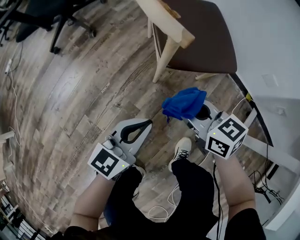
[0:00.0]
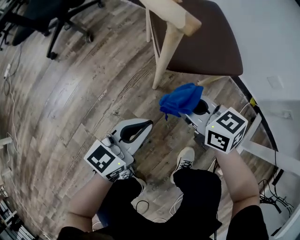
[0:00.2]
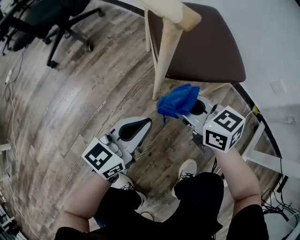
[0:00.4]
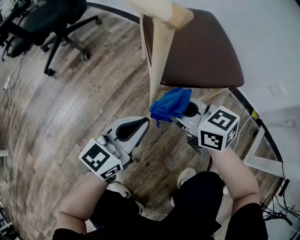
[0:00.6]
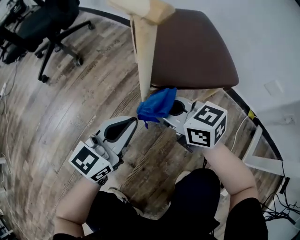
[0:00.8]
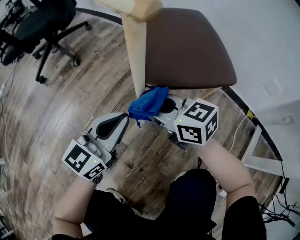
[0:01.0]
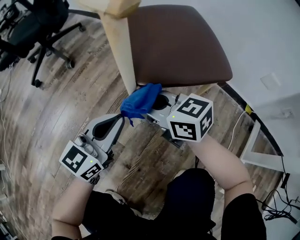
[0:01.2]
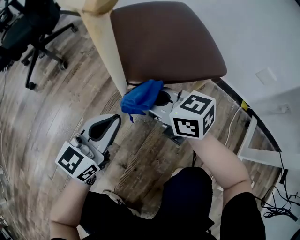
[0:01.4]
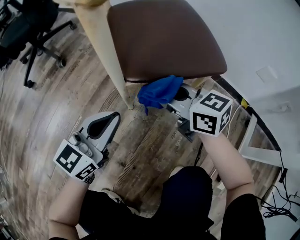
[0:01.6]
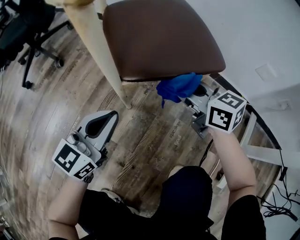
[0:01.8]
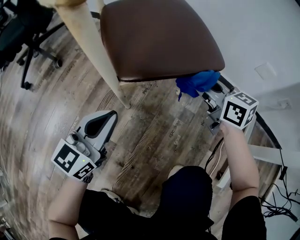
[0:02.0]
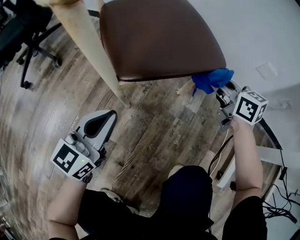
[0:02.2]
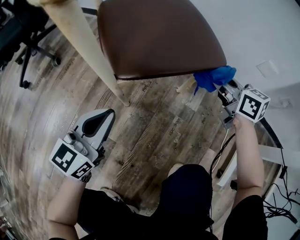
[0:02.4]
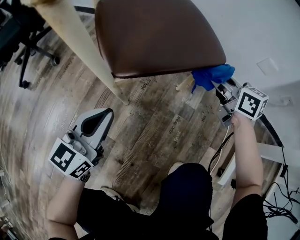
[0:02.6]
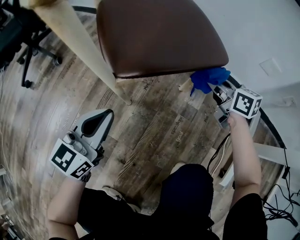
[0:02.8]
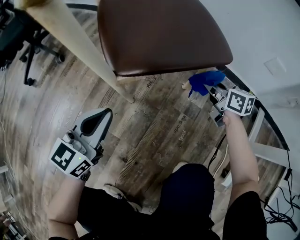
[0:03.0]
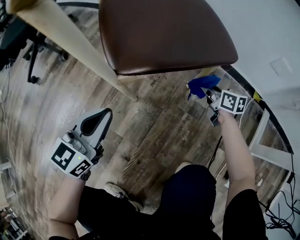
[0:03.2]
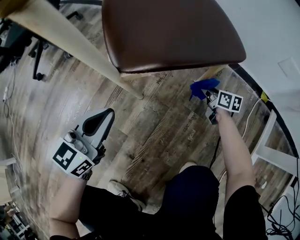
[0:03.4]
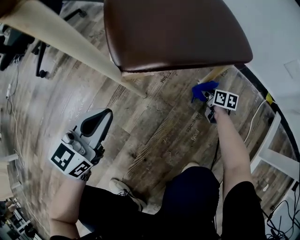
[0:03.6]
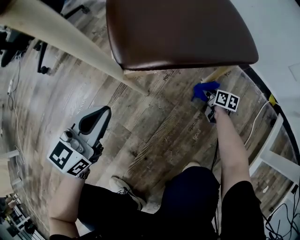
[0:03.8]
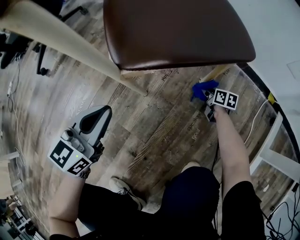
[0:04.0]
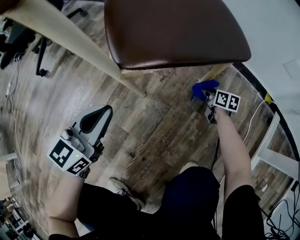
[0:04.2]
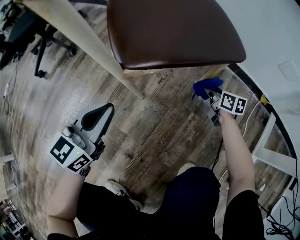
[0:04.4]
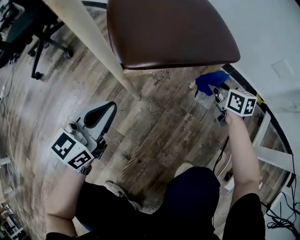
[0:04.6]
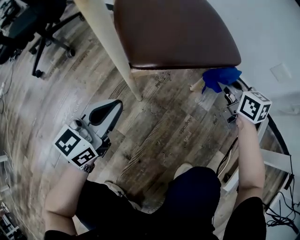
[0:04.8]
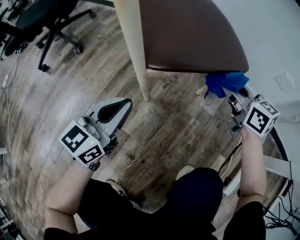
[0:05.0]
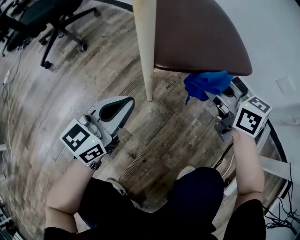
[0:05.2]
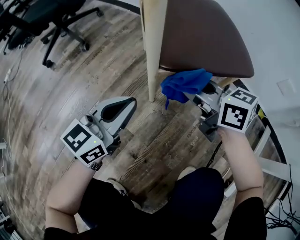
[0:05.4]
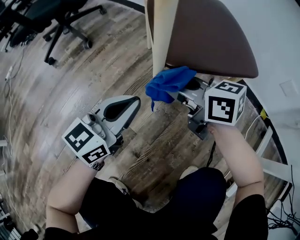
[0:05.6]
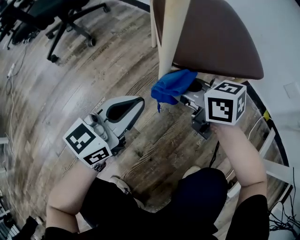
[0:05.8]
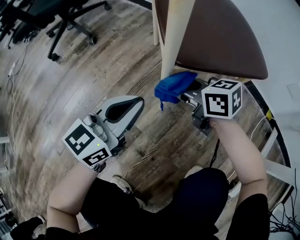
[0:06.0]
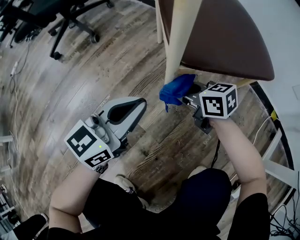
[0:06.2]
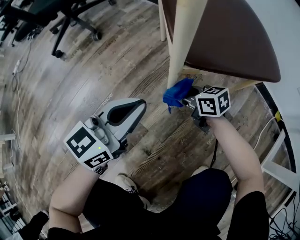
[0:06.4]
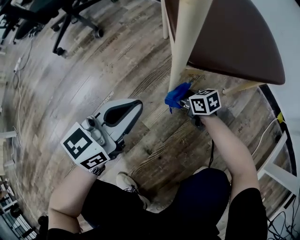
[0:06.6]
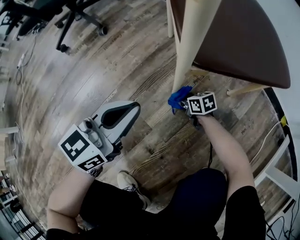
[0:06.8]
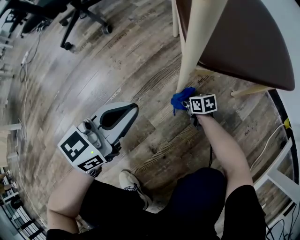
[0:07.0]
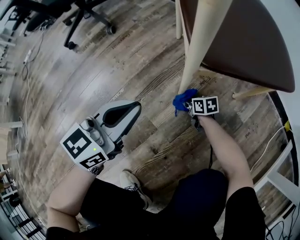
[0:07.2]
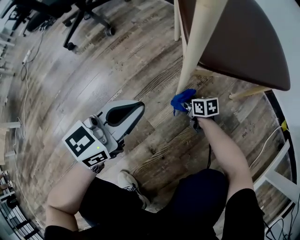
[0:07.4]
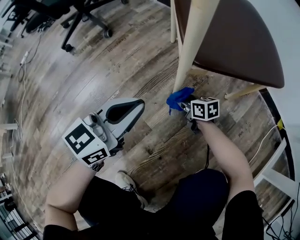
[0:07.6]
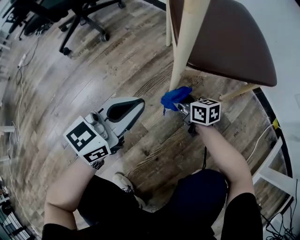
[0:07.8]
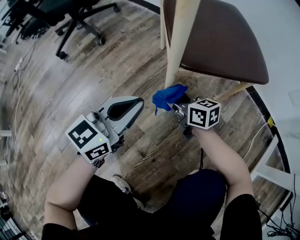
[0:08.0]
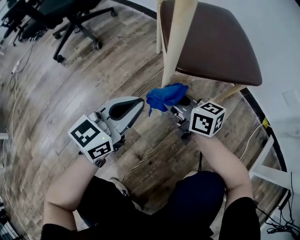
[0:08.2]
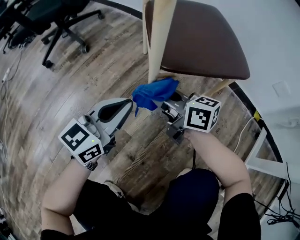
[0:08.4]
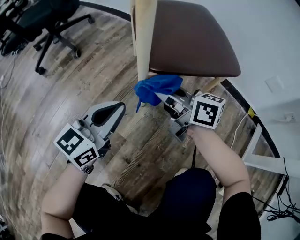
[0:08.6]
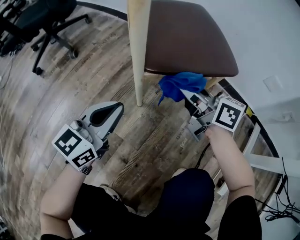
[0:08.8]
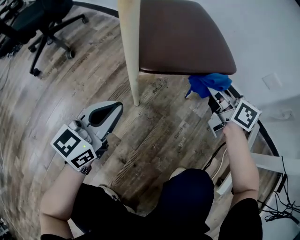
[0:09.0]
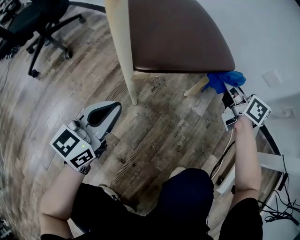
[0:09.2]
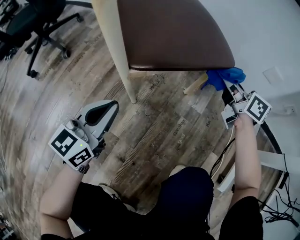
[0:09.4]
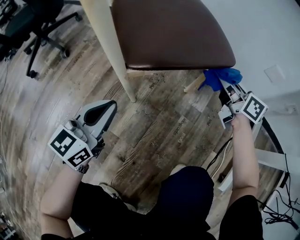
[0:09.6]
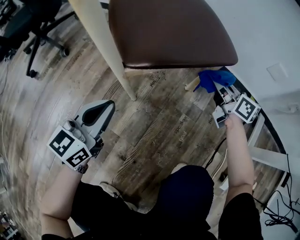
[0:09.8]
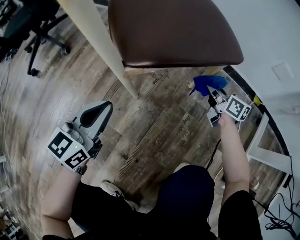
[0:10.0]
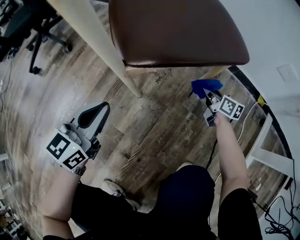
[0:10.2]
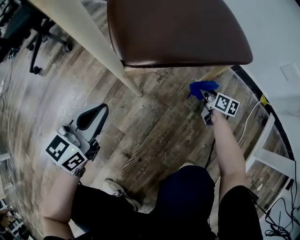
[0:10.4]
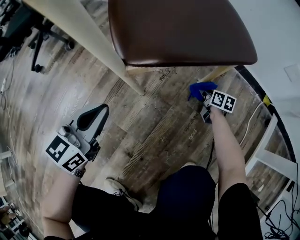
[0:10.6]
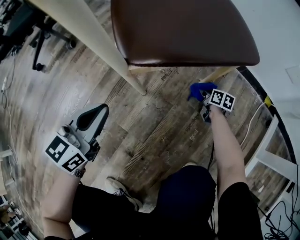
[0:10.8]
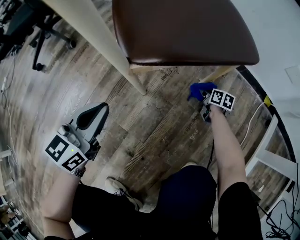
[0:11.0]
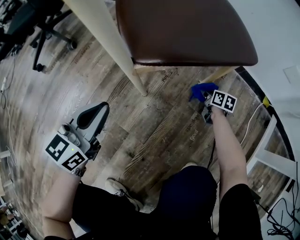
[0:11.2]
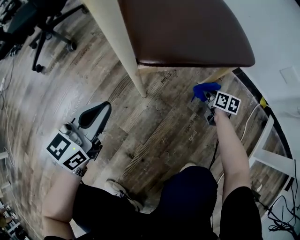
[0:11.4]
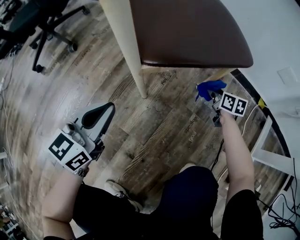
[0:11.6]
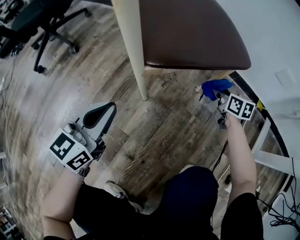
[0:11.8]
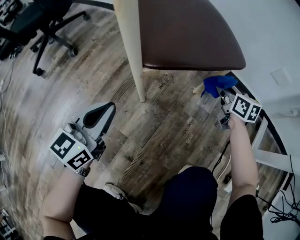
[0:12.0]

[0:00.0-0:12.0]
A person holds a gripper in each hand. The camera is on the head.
0:00.0 to 0:01.6: The right gripper heads downward, forward and to the right, covering about 15 cm; the left gripper shifts approximately 15 cm downward and forward.
0:01.6 to 0:03.0: The right gripper shifts roughly 25 cm to the right and downward, and rotates roughly 30 degrees.
0:03.0 to 0:04.4: The right gripper moves downward, approximately 10 cm.
0:04.4 to 0:06.0: The right gripper shifts some 35 cm to the left and upward, and turns by roughly 40 degrees.
0:06.0 to 0:07.6: The right gripper goes about 20 cm downward.
0:07.6 to 0:09.0: The left gripper is displaced to the right by some 5 cm. Meanwhile the right gripper shifts roughly 35 cm upward and to the right, and changes its angle by roughly 30 degrees.
0:09.0 to 0:10.4: The right gripper shifts some 30 cm downward, and rotates about 20 degrees, while the left gripper moves roughly 5 cm.
0:10.4 to 0:12.0: The right gripper is displaced upward by about 20 cm.

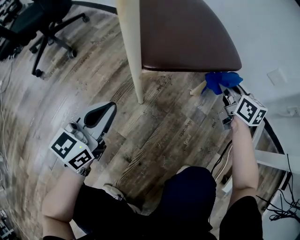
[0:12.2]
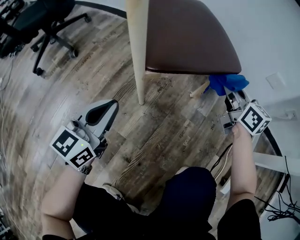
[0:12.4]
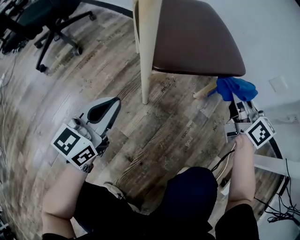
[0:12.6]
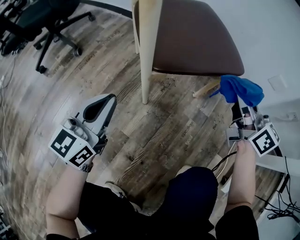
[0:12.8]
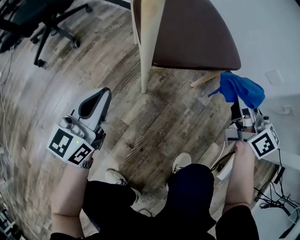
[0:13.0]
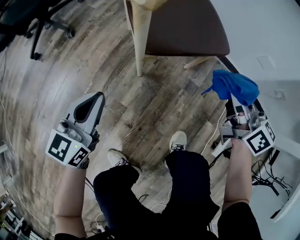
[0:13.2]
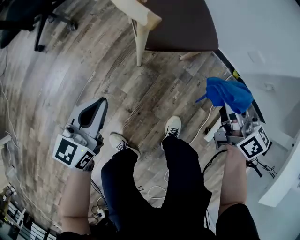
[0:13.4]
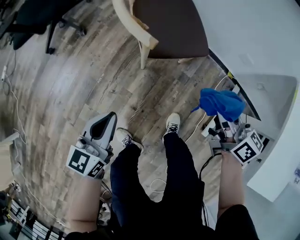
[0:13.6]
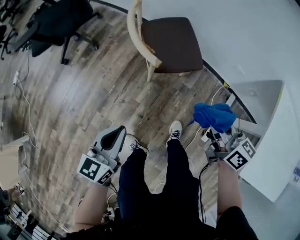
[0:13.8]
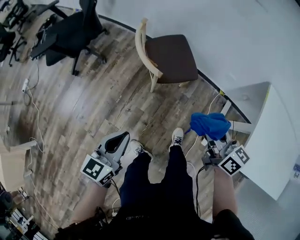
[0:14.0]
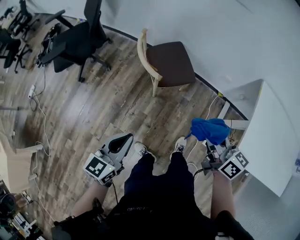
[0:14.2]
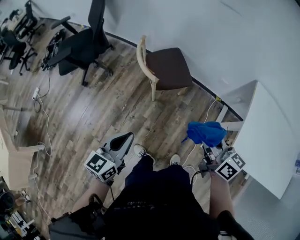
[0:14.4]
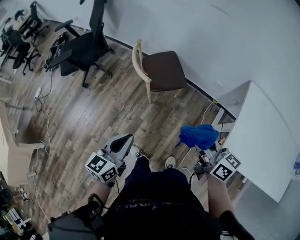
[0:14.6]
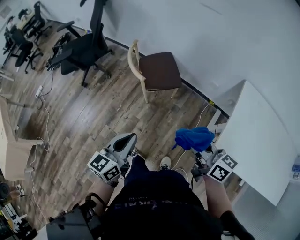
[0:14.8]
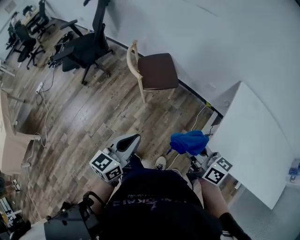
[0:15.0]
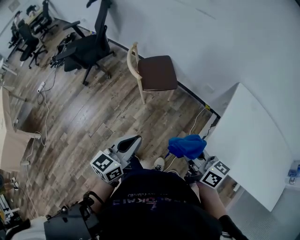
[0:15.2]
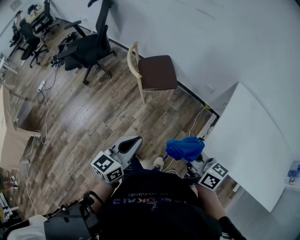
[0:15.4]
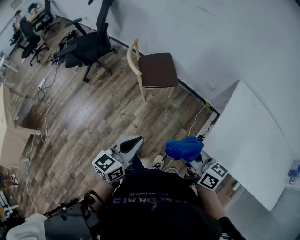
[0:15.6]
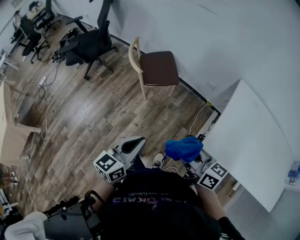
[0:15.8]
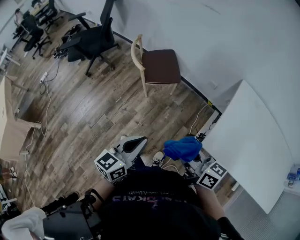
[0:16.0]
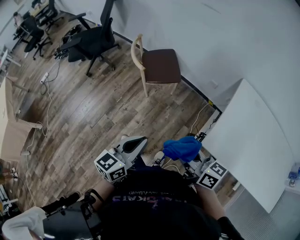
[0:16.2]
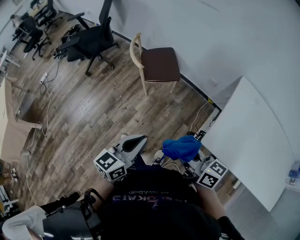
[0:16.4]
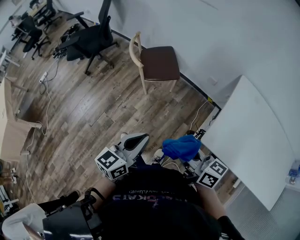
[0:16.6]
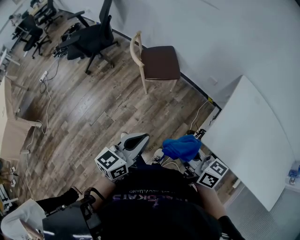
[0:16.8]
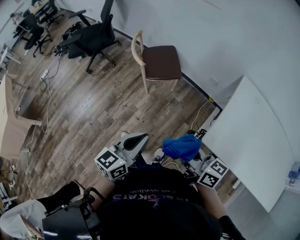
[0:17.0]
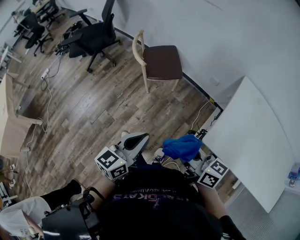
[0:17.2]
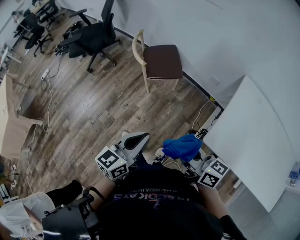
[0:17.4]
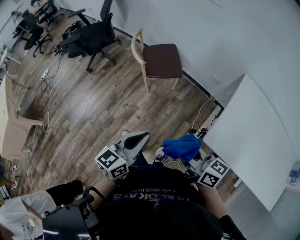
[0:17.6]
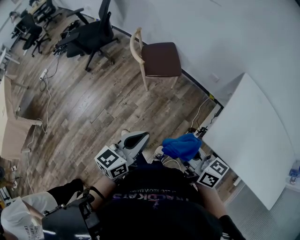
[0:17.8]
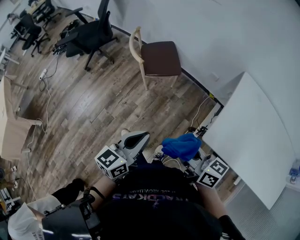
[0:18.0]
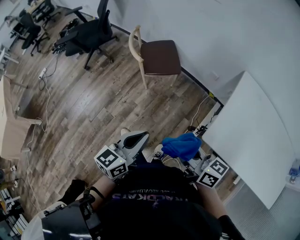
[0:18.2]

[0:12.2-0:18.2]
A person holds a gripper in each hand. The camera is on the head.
0:12.2 to 0:13.8: The right gripper is displaced upward and backward by about 50 cm. The left gripper goes some 40 cm upward.
0:13.8 to 0:15.2: The left gripper heads upward, to the right and backward, covering approximately 40 cm. The right gripper moves backward and upward, approximately 35 cm.
0:15.2 to 0:16.6: The left gripper shifts by some 5 cm; the right gripper moves backward, some 5 cm.
0:16.6 to 0:18.2: Neither gripper changes place.

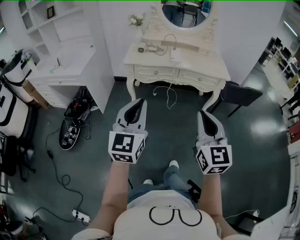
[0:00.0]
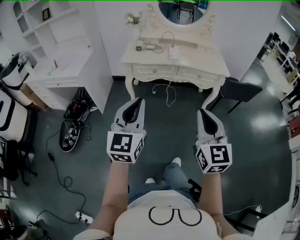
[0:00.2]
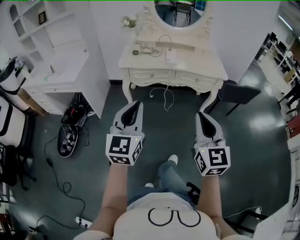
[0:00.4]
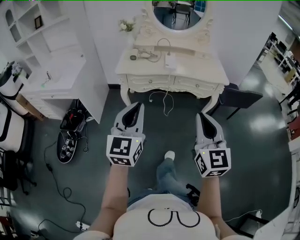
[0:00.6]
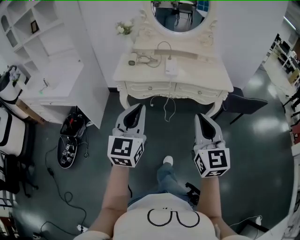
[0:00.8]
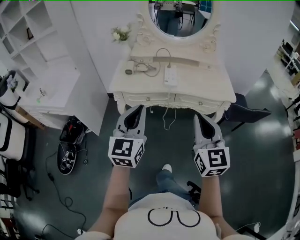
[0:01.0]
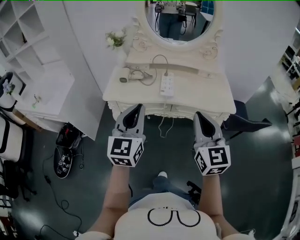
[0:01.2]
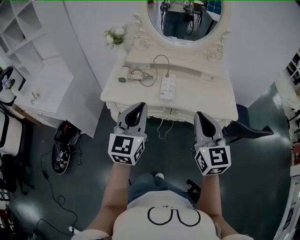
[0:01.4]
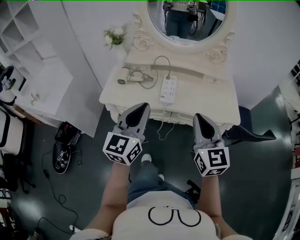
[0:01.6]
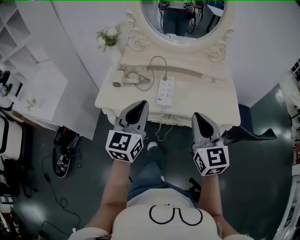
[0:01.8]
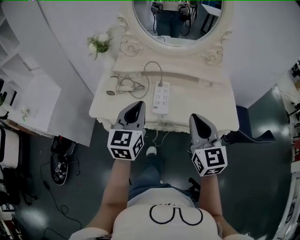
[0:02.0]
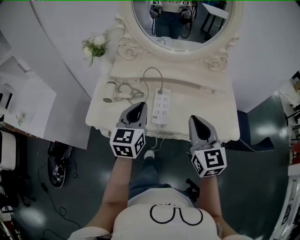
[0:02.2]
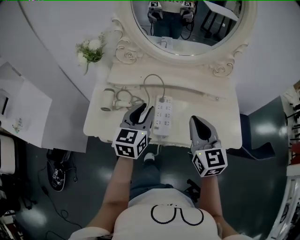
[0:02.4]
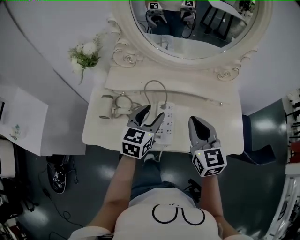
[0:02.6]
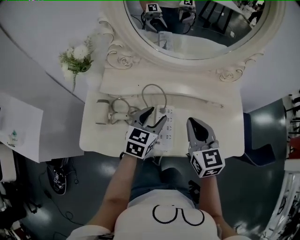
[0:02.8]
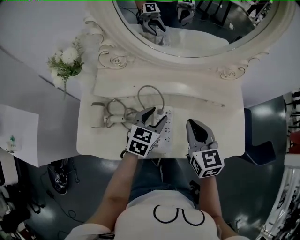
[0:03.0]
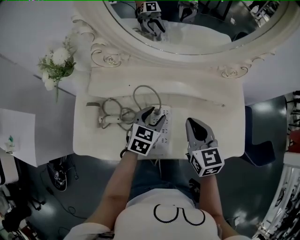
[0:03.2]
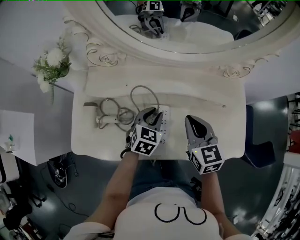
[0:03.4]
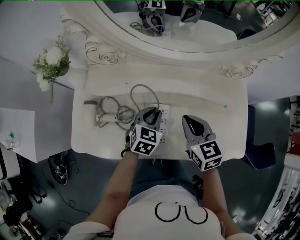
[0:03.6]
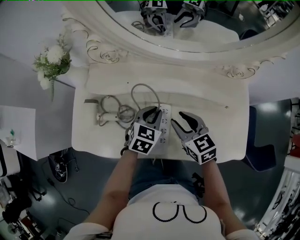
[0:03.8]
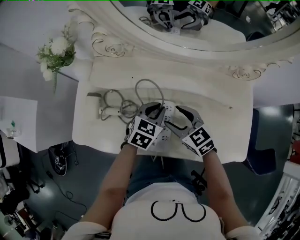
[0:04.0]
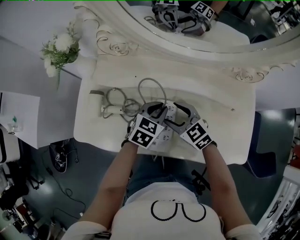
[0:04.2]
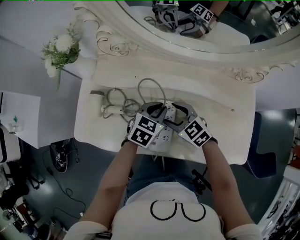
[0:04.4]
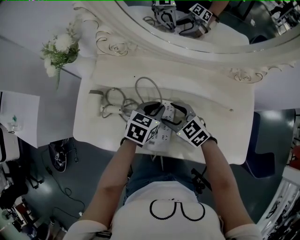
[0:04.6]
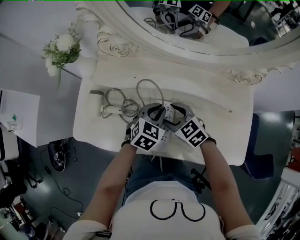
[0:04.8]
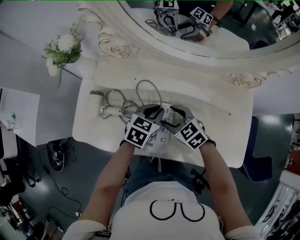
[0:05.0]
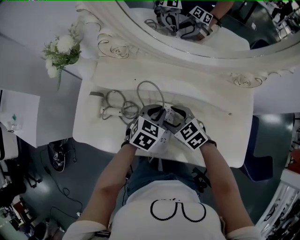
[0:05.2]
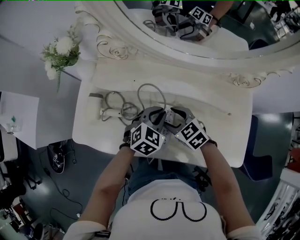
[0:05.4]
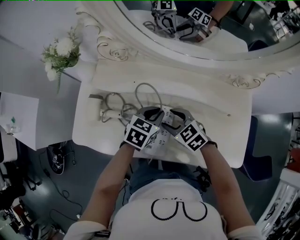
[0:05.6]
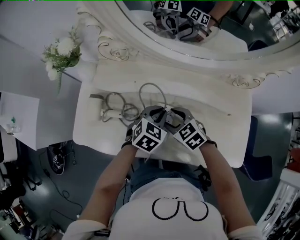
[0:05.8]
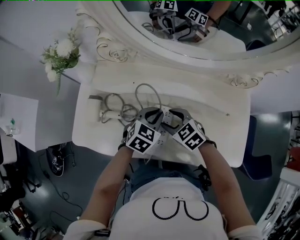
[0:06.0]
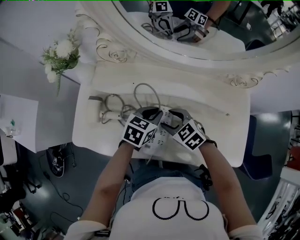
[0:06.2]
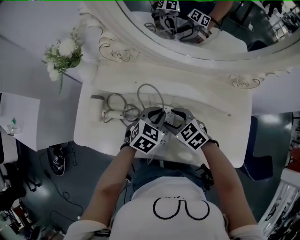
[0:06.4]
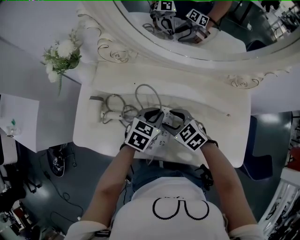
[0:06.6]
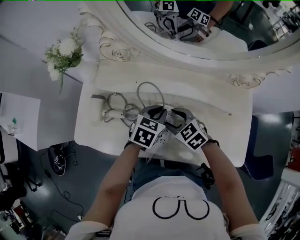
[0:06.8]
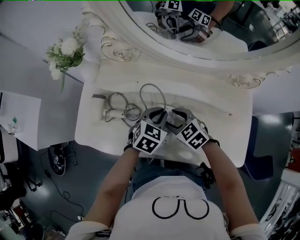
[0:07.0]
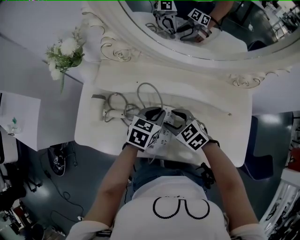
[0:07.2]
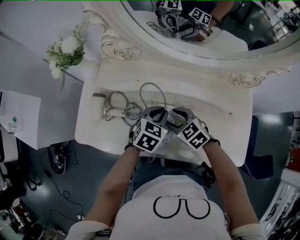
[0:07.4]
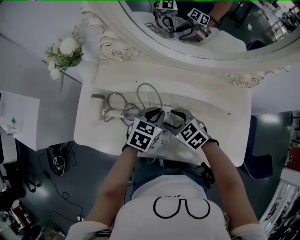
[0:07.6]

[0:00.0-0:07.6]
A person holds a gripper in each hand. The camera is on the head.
0:00.0 to 0:01.6: The pair of grippers is taken forward, some 50 cm.
0:01.6 to 0:03.0: The right gripper heads forward, covering about 35 cm, and turns by roughly 20 degrees. The left gripper moves forward and downward, roughly 40 cm, angles its fingers downward, by roughly 30 degrees, and opens up.
0:03.0 to 0:04.6: The right gripper heads downward and to the left, covering some 15 cm, rotates approximately 50 degrees, and opens. The left gripper travels downward by some 5 cm, and closes up.
